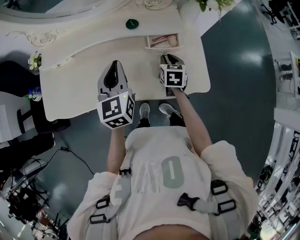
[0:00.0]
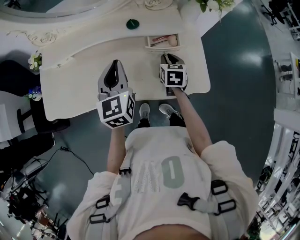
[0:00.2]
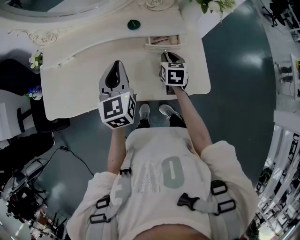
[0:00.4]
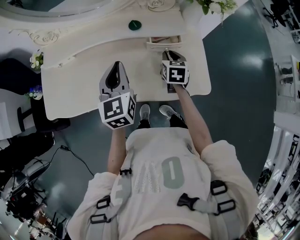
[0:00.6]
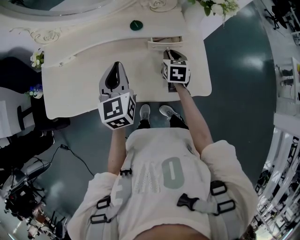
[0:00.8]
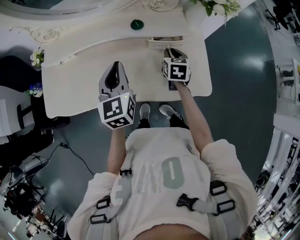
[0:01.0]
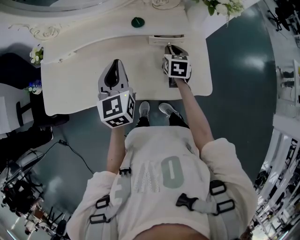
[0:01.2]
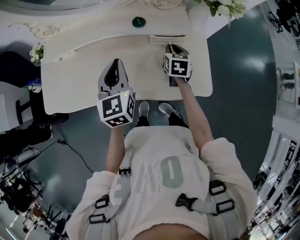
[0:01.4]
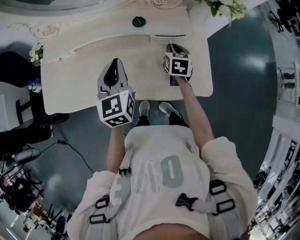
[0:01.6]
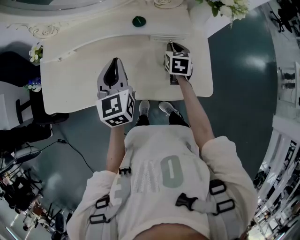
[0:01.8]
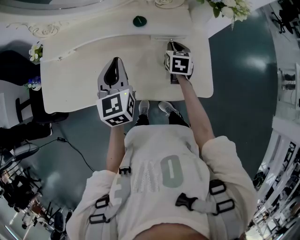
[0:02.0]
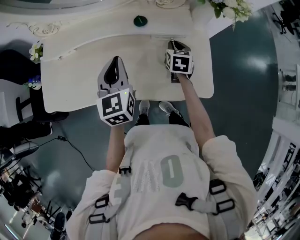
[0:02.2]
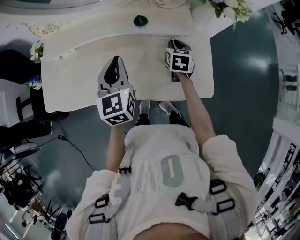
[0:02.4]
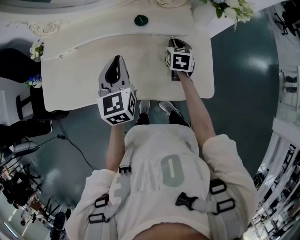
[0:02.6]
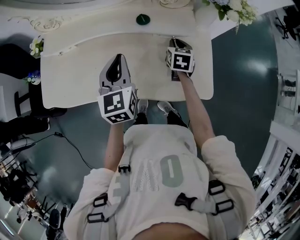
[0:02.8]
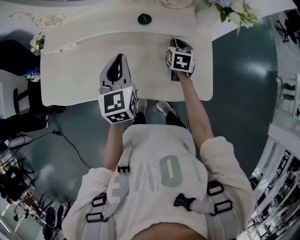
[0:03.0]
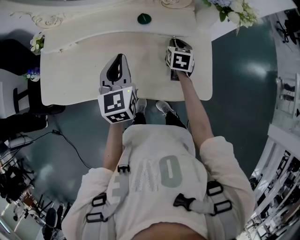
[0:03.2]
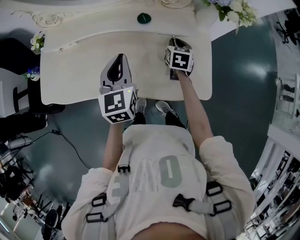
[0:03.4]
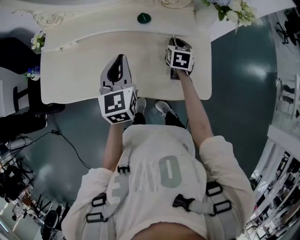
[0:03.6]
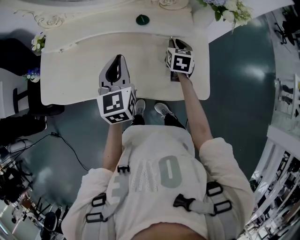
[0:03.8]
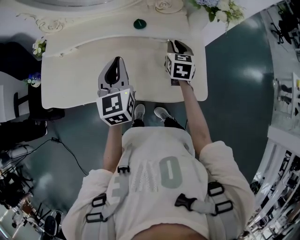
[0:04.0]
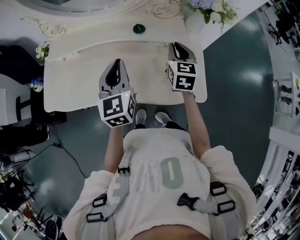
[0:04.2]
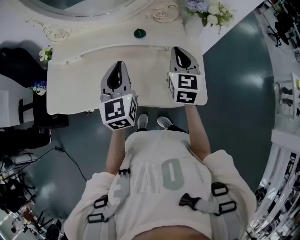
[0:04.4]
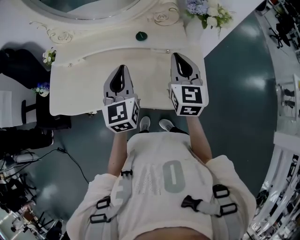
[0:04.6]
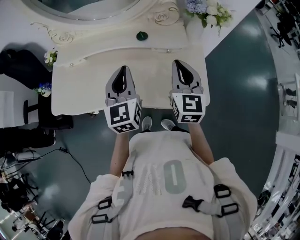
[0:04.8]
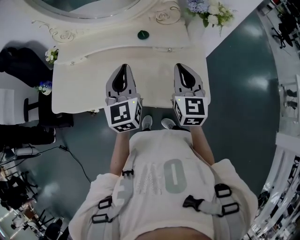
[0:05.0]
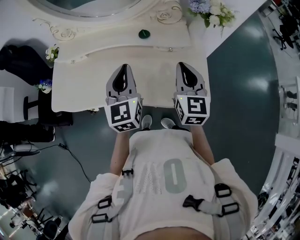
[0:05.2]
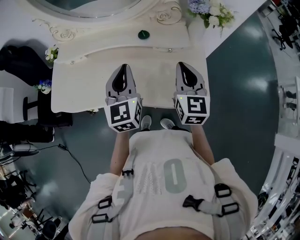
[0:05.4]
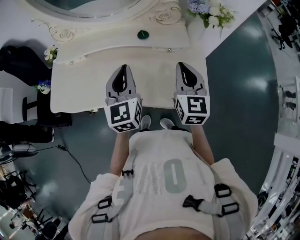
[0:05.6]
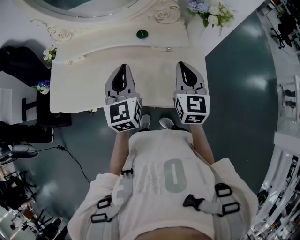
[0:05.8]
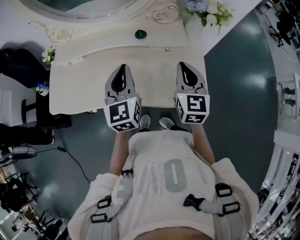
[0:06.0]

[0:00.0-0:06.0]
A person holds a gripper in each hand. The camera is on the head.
0:00.0 to 0:01.6: The right gripper travels forward by about 5 cm.
0:01.6 to 0:03.0: The grippers make only small movements.
0:03.0 to 0:04.4: The right gripper moves upward and backward, approximately 20 cm, and rotates about 30 degrees. The left gripper travels upward by roughly 5 cm.
0:04.4 to 0:06.0: The right gripper moves backward, approximately 5 cm.

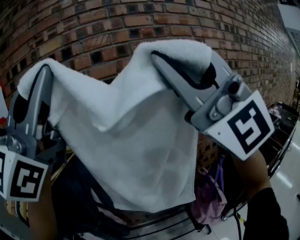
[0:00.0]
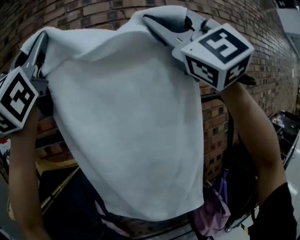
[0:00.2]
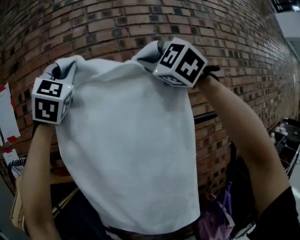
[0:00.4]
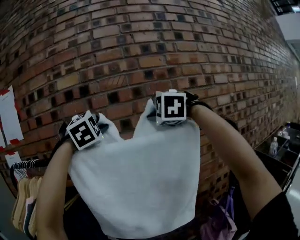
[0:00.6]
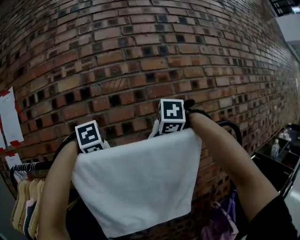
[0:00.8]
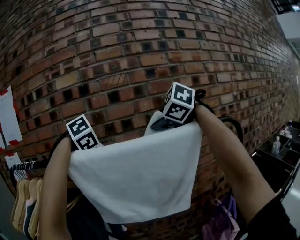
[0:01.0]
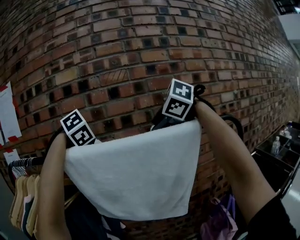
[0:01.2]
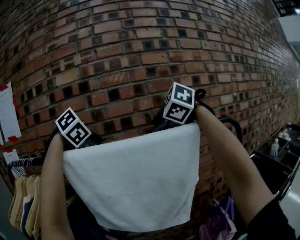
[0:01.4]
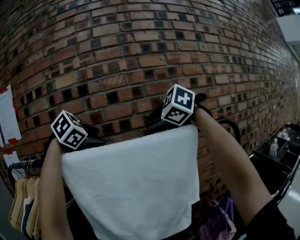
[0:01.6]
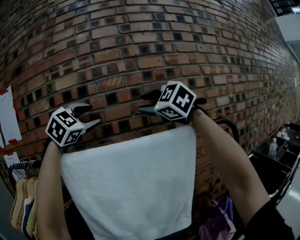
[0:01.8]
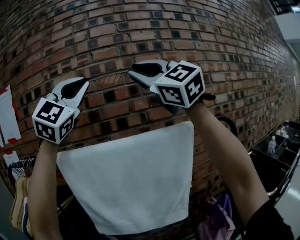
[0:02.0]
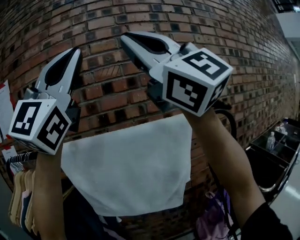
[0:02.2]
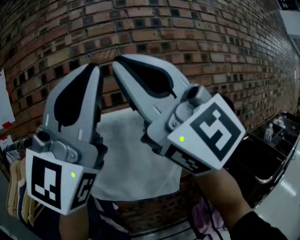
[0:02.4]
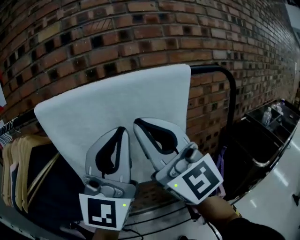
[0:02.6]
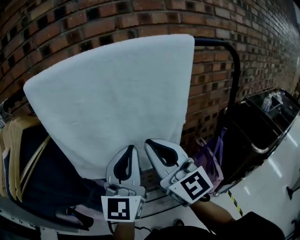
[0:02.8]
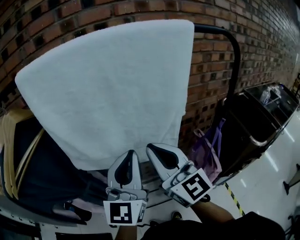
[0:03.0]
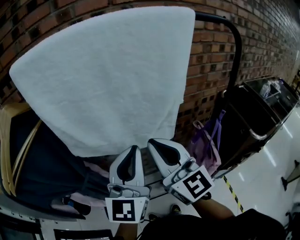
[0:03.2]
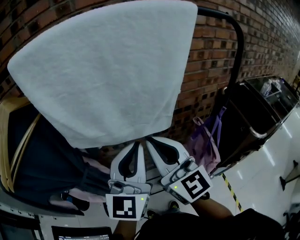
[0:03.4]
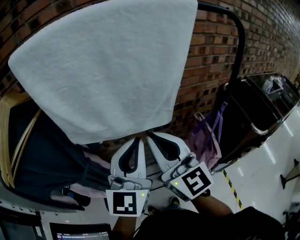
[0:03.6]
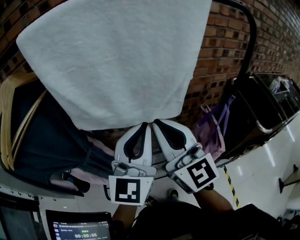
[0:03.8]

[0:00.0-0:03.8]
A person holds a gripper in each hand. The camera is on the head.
0:00.0 to 0:01.2: Both grippers travel together forward and downward, roughly 35 cm. The left gripper points its fingers some 90 degrees further downward, and opens up. The right gripper tilts its fingers approximately 70 degrees downward, and opens its fingers.
0:01.2 to 0:02.6: Both grippers travel together backward, approximately 25 cm. The left gripper points its fingers roughly 90 degrees further upward, and closes; the right gripper moves about 25 cm upward and comes back, tilts its fingers approximately 70 degrees upward, and closes.
0:02.6 to 0:03.8: The grippers both shift downward by roughly 20 cm. The right gripper swivels some 30 degrees, while the left gripper turns by about 30 degrees.

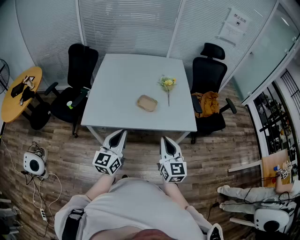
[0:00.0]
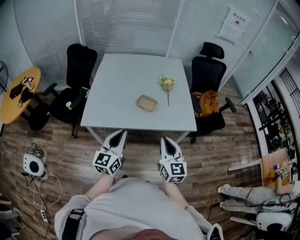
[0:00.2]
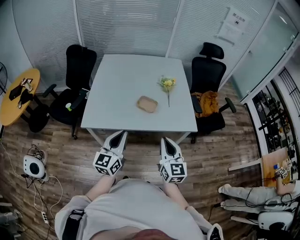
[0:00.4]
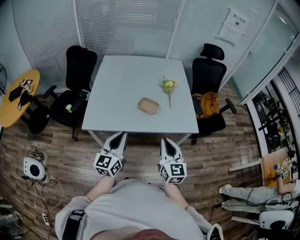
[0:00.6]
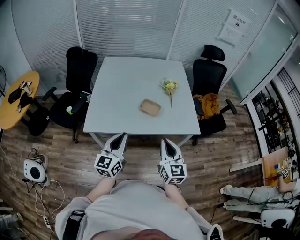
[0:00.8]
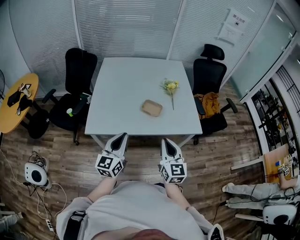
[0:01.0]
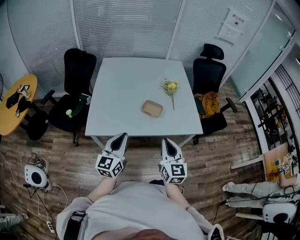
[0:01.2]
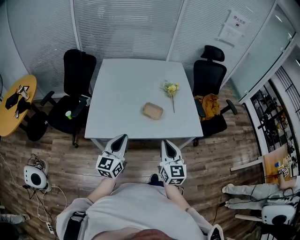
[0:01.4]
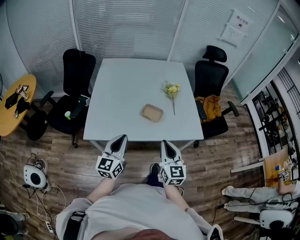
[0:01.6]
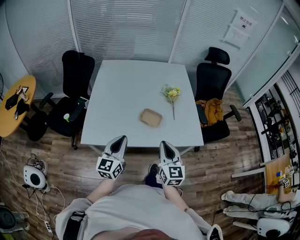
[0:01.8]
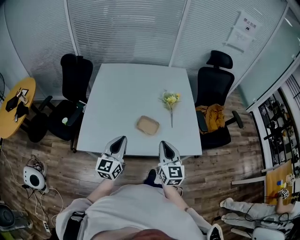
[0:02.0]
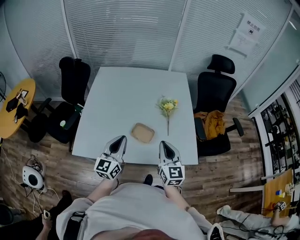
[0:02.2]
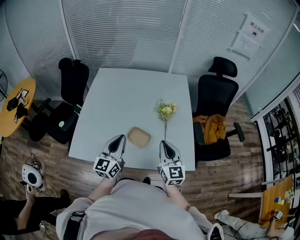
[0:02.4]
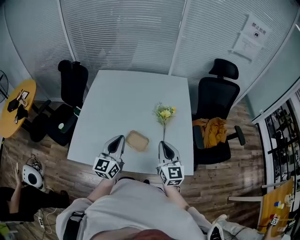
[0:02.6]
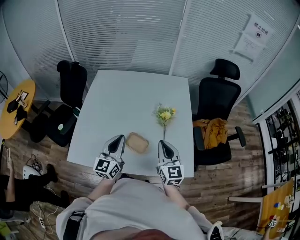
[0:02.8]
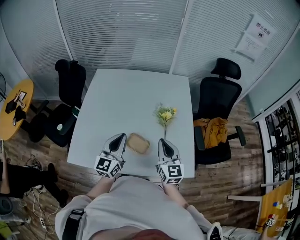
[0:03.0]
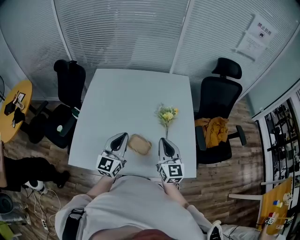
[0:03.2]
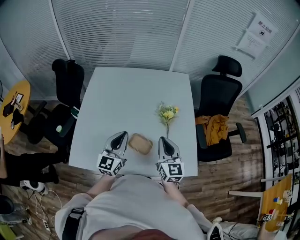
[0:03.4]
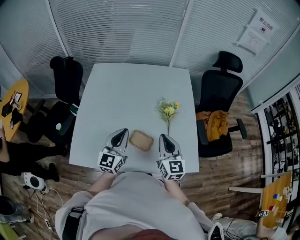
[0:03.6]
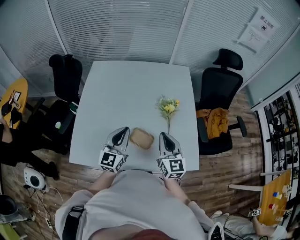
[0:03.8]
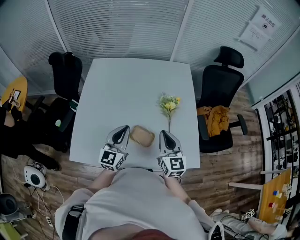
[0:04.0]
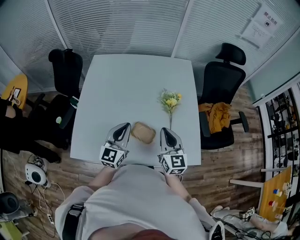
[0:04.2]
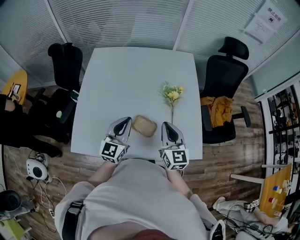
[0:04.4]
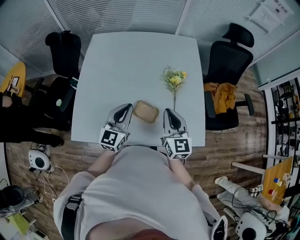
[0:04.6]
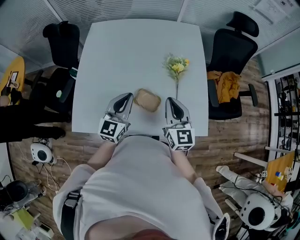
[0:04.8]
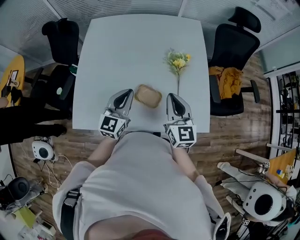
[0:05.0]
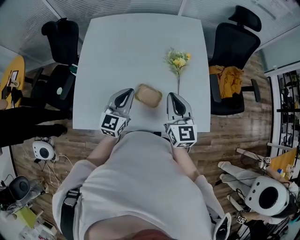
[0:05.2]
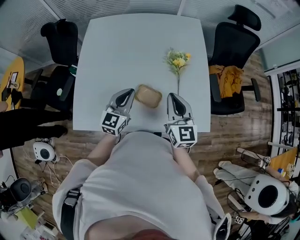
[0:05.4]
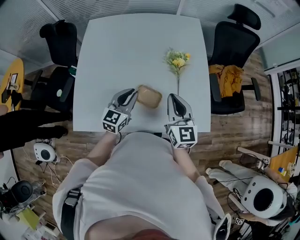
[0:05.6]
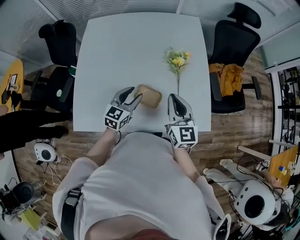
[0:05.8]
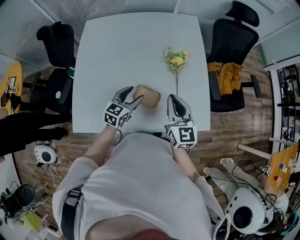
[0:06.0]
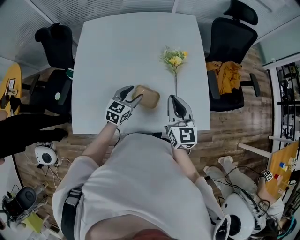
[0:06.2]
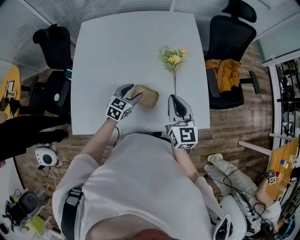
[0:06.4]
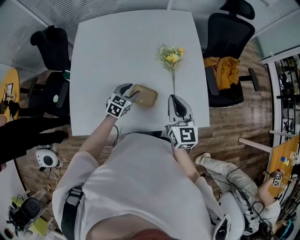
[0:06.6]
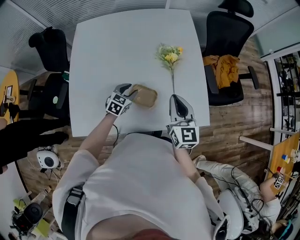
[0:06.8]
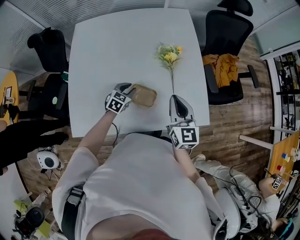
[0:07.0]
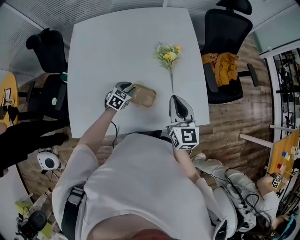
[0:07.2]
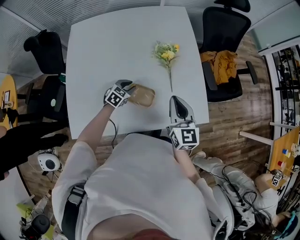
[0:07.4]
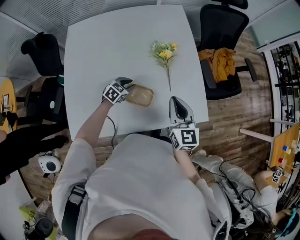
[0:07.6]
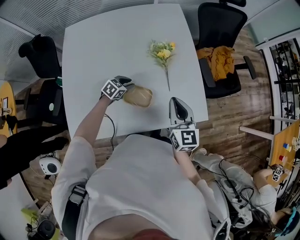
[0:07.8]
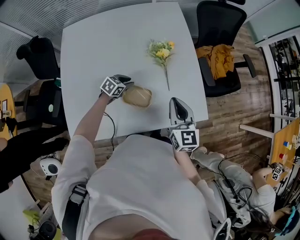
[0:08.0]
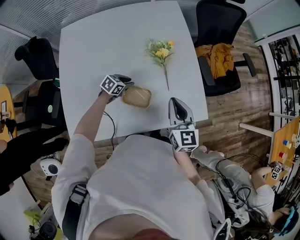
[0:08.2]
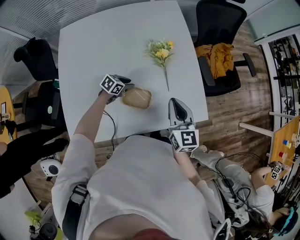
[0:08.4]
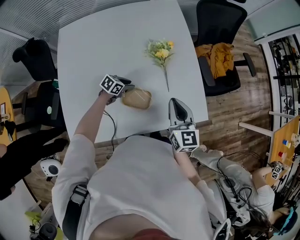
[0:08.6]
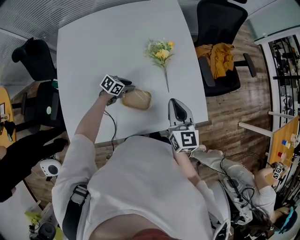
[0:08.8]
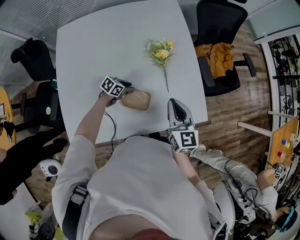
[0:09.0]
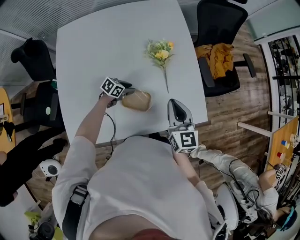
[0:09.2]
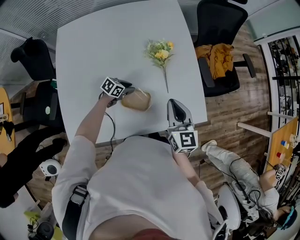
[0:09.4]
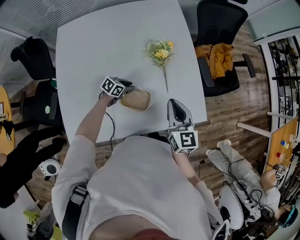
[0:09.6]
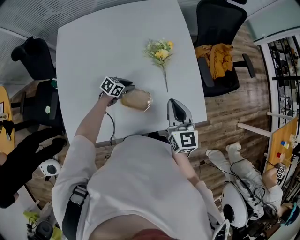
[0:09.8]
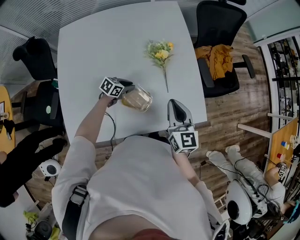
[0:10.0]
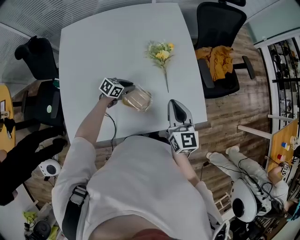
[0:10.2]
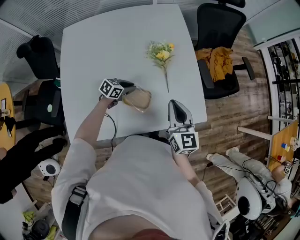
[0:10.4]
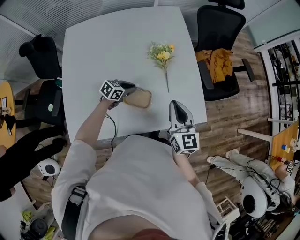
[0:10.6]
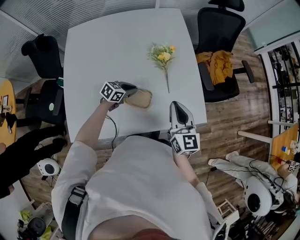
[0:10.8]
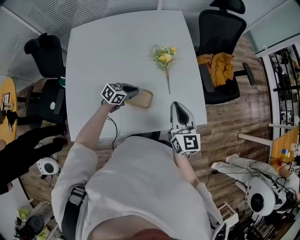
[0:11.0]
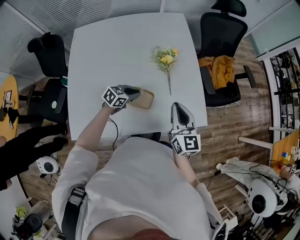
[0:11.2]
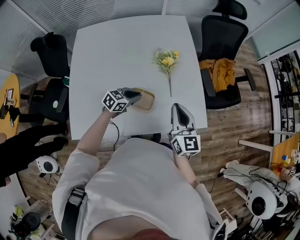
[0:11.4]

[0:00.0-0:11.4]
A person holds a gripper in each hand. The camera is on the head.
0:00.0 to 0:01.4: The grippers both shift to the left and forward by approximately 10 cm.
0:01.4 to 0:02.8: Both grippers move forward and to the right, some 30 cm.
0:02.8 to 0:04.2: The left gripper changes place by roughly 5 cm; the right gripper moves about 5 cm.
0:04.2 to 0:05.6: The left gripper shifts about 10 cm downward.
0:05.6 to 0:07.2: The left gripper travels downward by about 15 cm, tilts its fingers about 30 degrees downward, and opens, then closes once more.
0:07.2 to 0:08.6: The left gripper goes some 5 cm downward, and changes its angle by about 30 degrees.
0:08.6 to 0:10.0: The grippers move only a little.
0:10.0 to 0:11.4: The right gripper moves about 5 cm. Meanwhile the left gripper is displaced upward, backward and to the right by about 15 cm.

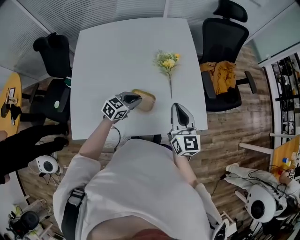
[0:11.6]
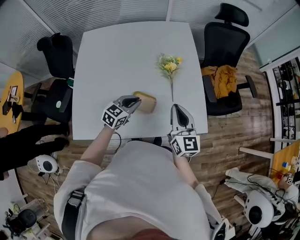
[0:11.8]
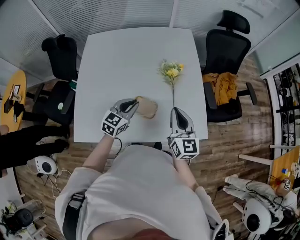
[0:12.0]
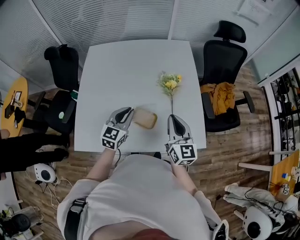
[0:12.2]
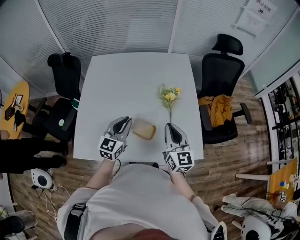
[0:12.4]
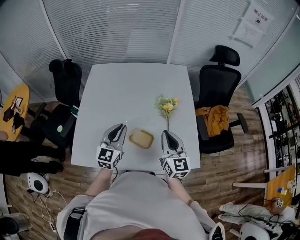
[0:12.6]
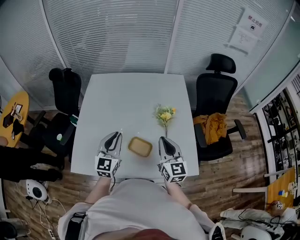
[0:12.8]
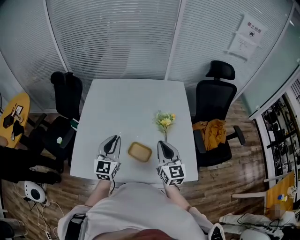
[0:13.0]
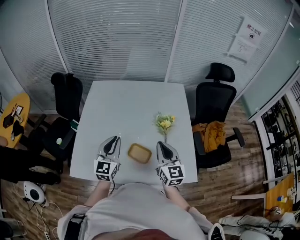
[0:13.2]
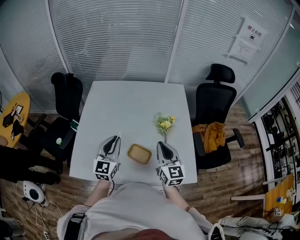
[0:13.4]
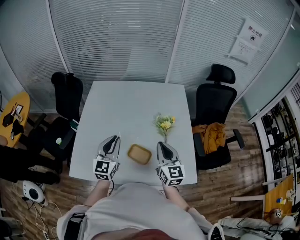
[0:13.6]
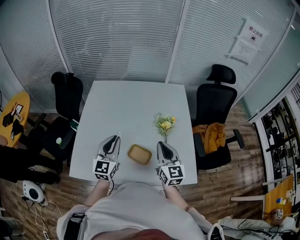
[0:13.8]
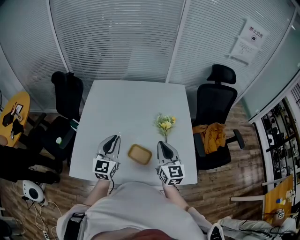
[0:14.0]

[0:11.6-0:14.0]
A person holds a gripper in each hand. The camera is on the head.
0:11.6 to 0:12.8: The left gripper goes roughly 20 cm upward, and turns by approximately 50 degrees. The right gripper shifts by about 5 cm.
0:12.8 to 0:14.0: The grippers stay close to where they were, moving slightly.
